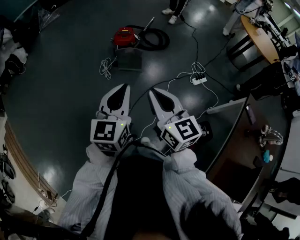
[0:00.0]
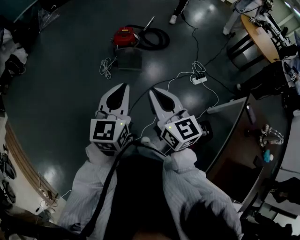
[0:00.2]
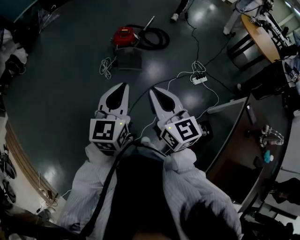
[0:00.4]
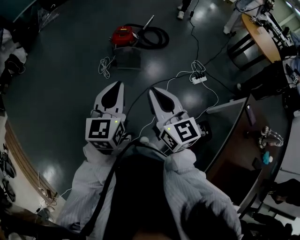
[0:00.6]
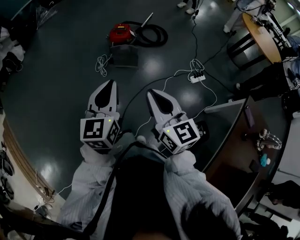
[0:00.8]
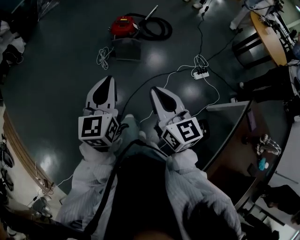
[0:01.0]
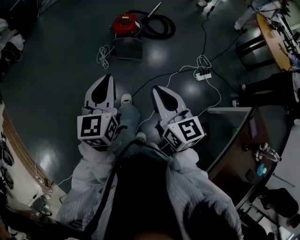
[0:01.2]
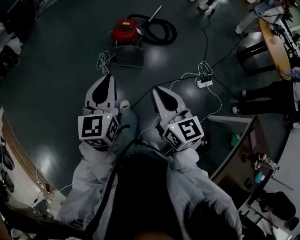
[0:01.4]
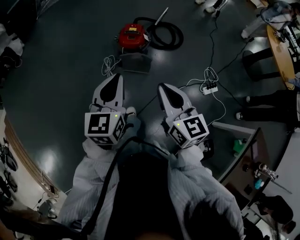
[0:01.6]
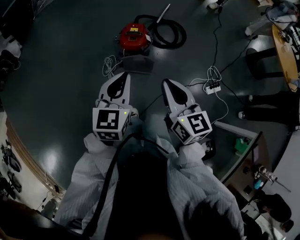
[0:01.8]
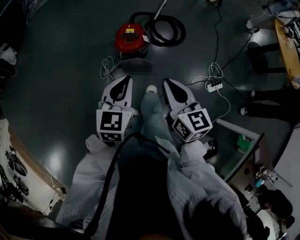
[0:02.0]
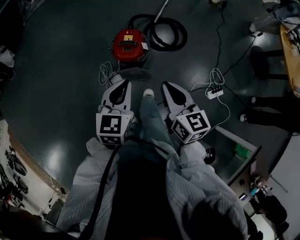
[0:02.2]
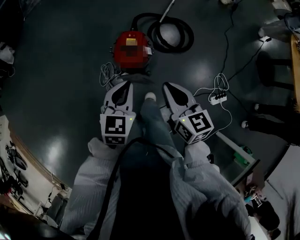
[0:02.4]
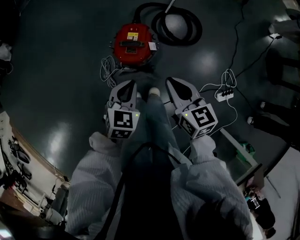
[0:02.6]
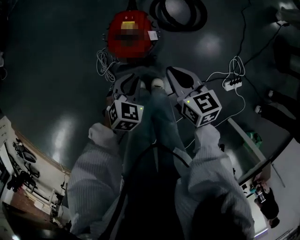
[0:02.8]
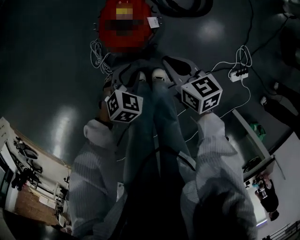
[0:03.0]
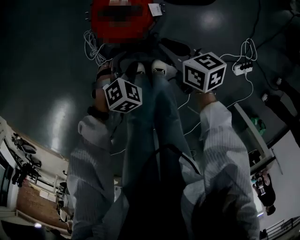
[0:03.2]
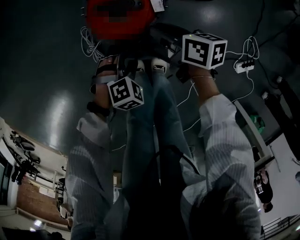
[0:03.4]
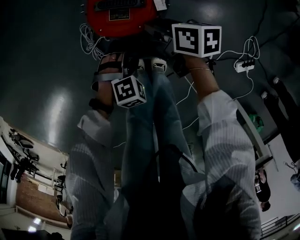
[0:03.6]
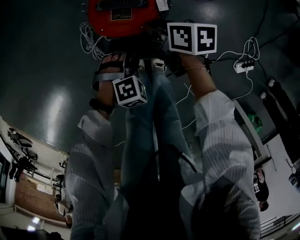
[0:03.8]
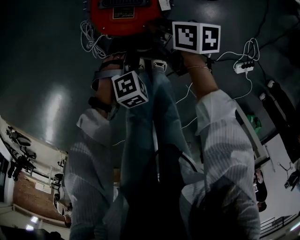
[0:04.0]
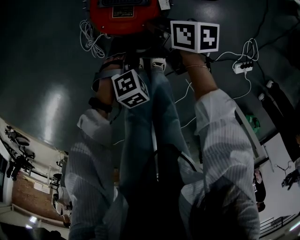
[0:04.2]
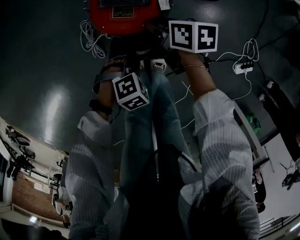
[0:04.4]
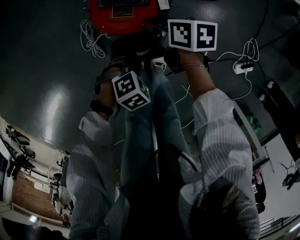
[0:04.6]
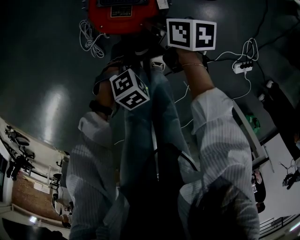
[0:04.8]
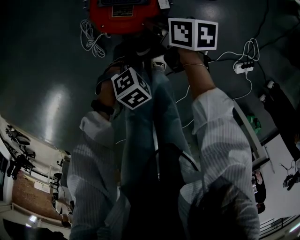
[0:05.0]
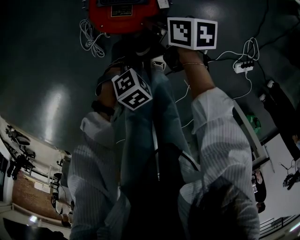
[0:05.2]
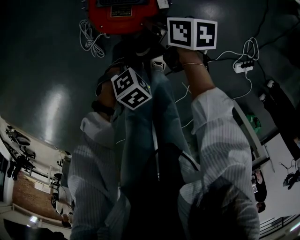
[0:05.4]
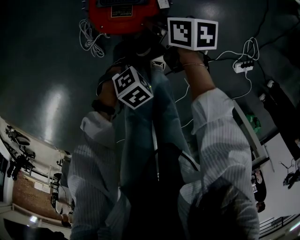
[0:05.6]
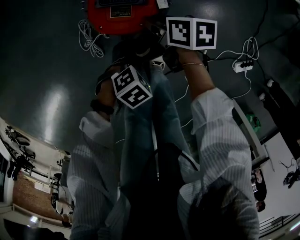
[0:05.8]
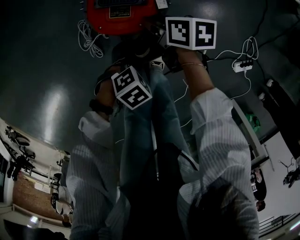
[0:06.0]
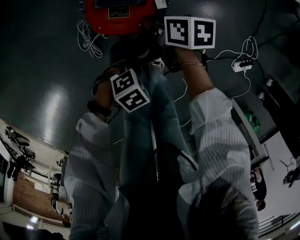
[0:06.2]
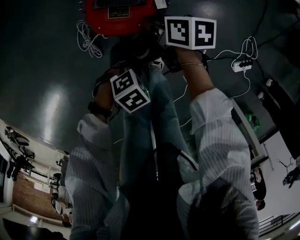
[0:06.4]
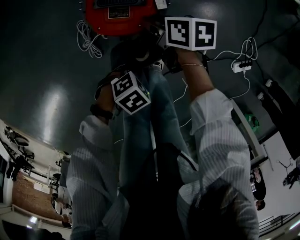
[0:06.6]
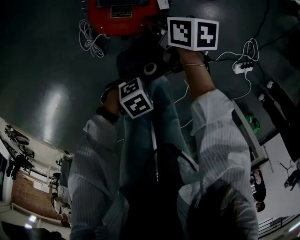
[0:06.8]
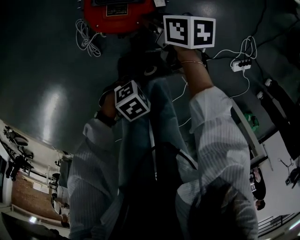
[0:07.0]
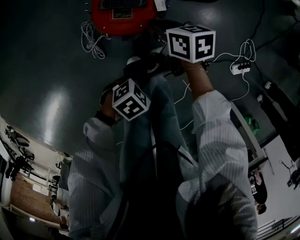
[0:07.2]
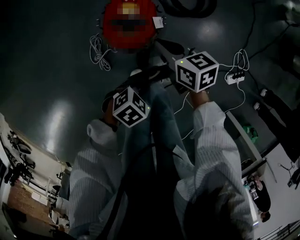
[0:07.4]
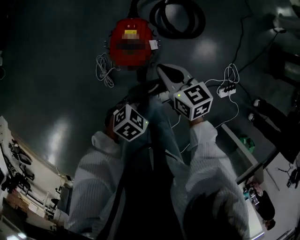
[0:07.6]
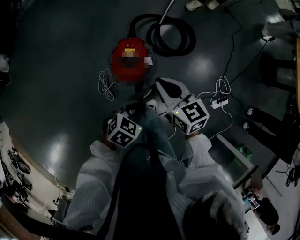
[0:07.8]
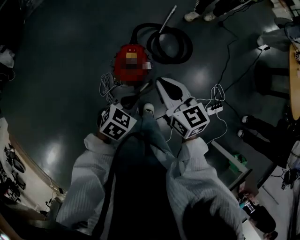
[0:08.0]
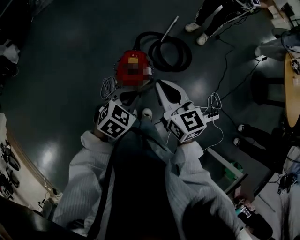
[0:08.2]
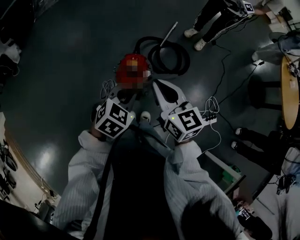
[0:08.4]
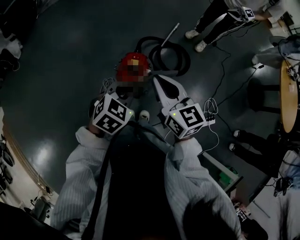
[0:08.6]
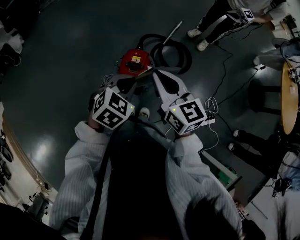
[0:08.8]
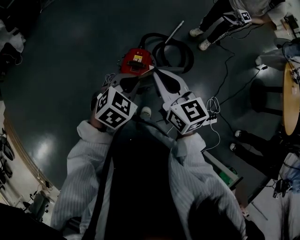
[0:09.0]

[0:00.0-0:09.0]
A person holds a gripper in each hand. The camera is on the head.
0:00.0 to 0:01.6: Both grippers move forward, some 30 cm.
0:01.6 to 0:03.0: Both grippers move downward and forward, roughly 60 cm. The left gripper tilts its fingers approximately 50 degrees downward, and opens its fingers, while the right gripper turns by some 30 degrees.
0:03.0 to 0:04.4: Both grippers travel together downward, roughly 15 cm. The left gripper changes its angle by some 30 degrees; the right gripper swivels some 30 degrees, and opens.
0:04.4 to 0:06.0: The grippers stay close to where they were, moving slightly.
0:06.0 to 0:07.6: The two grippers go approximately 25 cm upward. The right gripper rotates about 30 degrees, and closes its fingers.
0:07.6 to 0:09.0: Both grippers travel together upward, approximately 30 cm. The right gripper turns by approximately 20 degrees, while the left gripper turns by roughly 30 degrees.

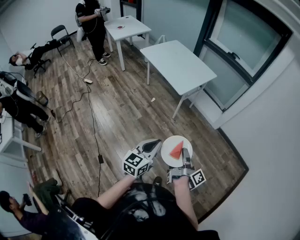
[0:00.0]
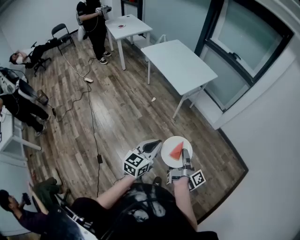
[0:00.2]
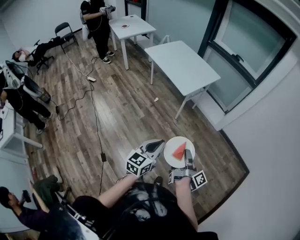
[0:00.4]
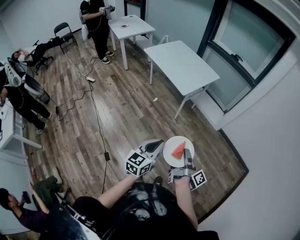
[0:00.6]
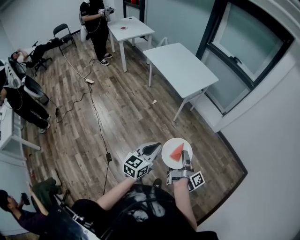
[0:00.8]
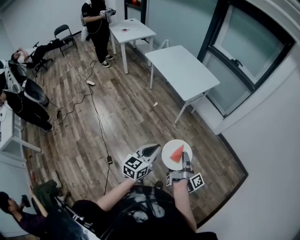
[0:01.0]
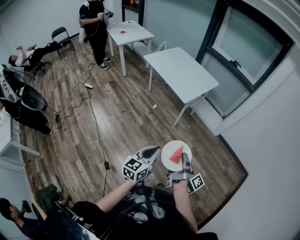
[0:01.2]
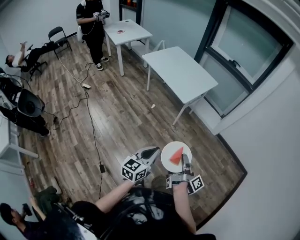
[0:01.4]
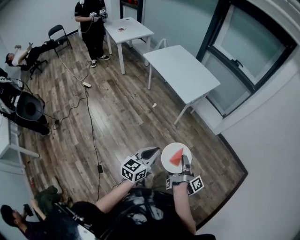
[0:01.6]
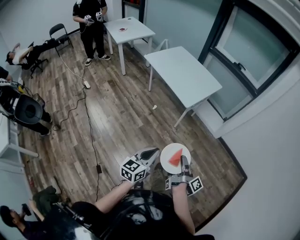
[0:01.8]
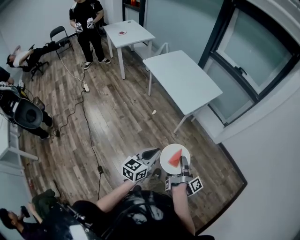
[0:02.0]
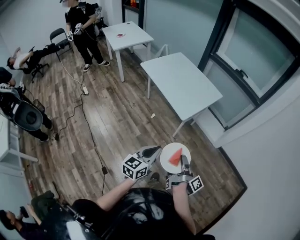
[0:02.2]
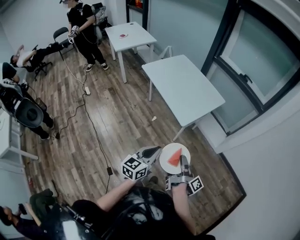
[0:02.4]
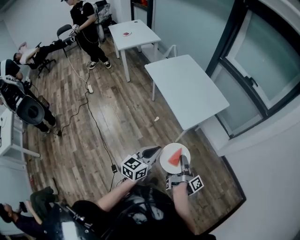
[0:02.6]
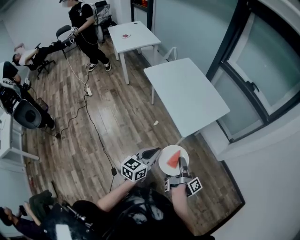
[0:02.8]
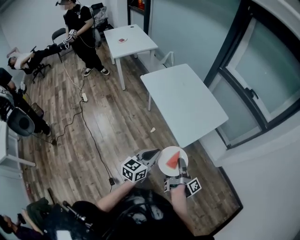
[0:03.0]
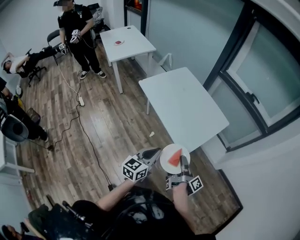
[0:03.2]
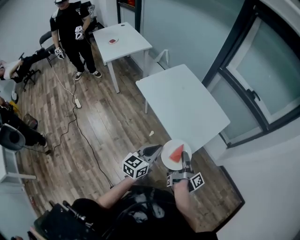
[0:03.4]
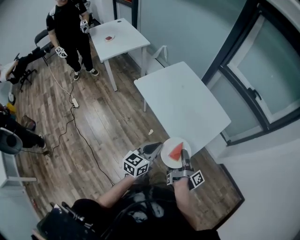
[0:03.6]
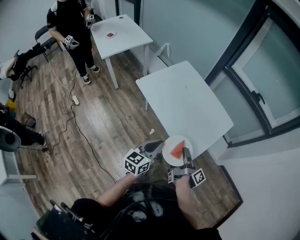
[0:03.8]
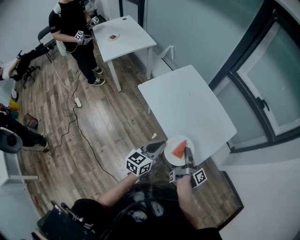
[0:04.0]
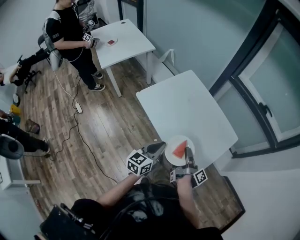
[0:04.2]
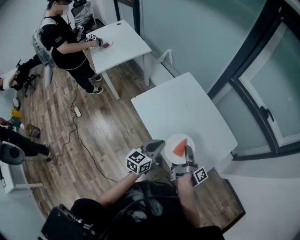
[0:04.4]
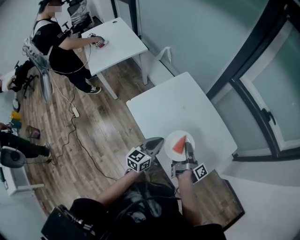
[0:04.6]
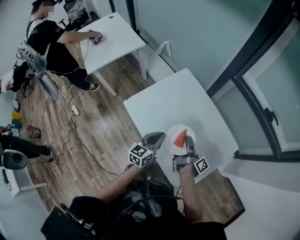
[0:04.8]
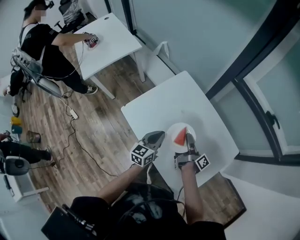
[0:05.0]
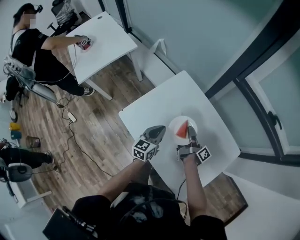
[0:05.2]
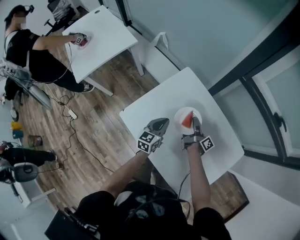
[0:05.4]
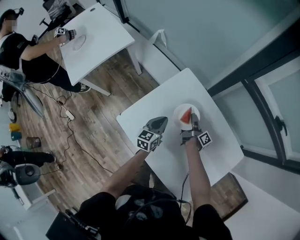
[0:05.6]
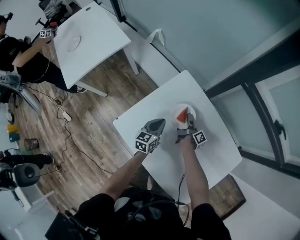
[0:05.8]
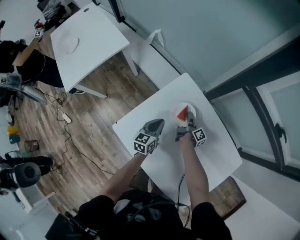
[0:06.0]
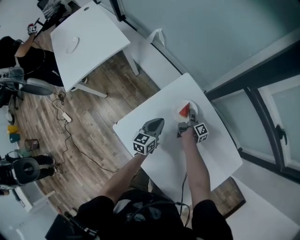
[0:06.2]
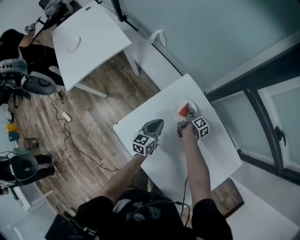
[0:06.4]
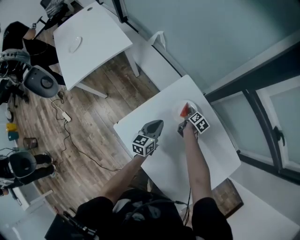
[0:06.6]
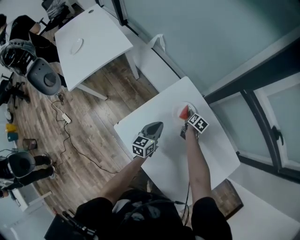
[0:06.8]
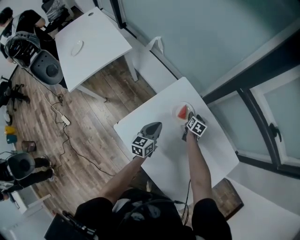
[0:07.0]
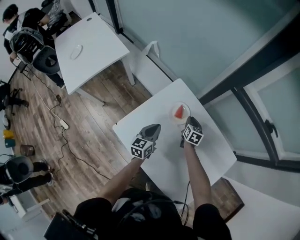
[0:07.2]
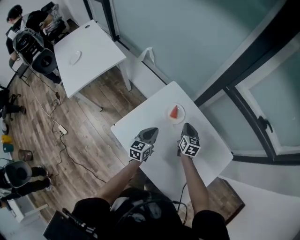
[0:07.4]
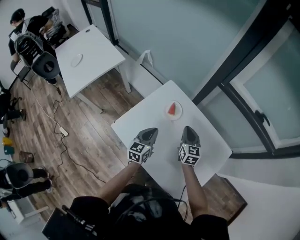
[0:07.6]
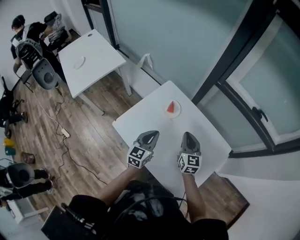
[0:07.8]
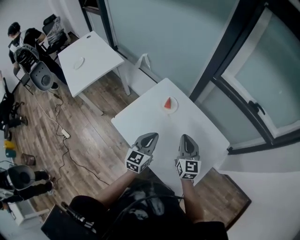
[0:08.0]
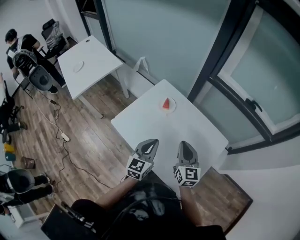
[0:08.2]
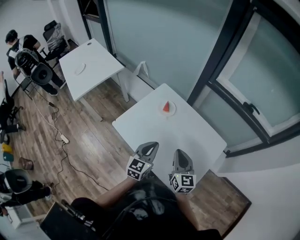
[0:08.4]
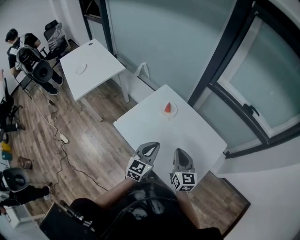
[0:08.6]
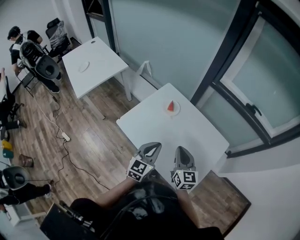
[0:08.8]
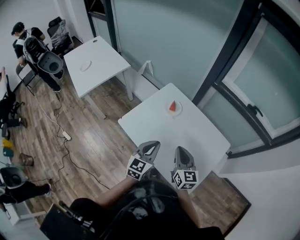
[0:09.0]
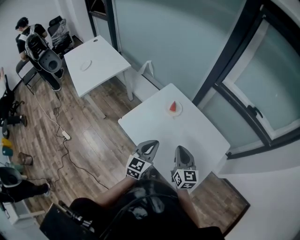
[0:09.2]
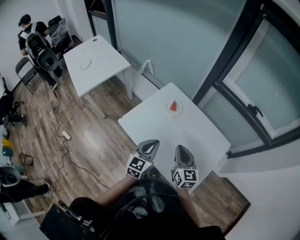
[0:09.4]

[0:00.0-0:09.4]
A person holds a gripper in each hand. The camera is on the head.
0:00.0 to 0:01.6: The left gripper ends up some 10 cm from where it was.
0:01.6 to 0:03.2: The left gripper moves some 50 cm.
0:03.2 to 0:04.8: The left gripper shifts by about 50 cm.
0:04.8 to 0:06.2: The left gripper moves about 30 cm.
0:06.2 to 0:07.8: The left gripper ends up about 25 cm from where it was.
0:07.8 to 0:09.4: The left gripper moves roughly 15 cm.

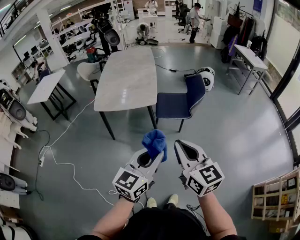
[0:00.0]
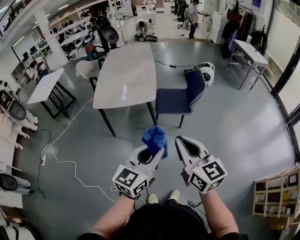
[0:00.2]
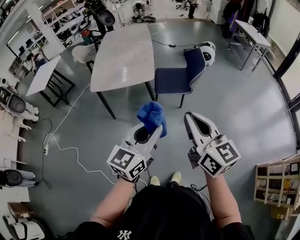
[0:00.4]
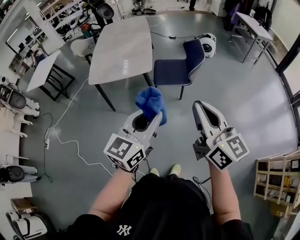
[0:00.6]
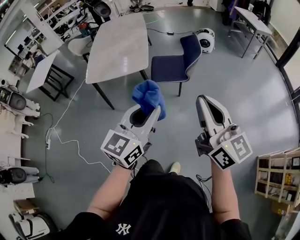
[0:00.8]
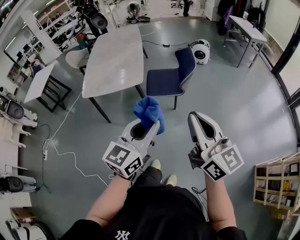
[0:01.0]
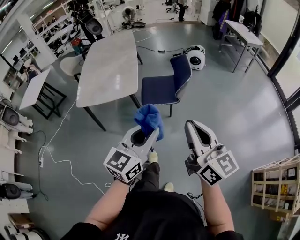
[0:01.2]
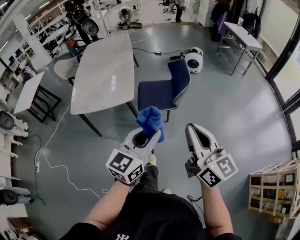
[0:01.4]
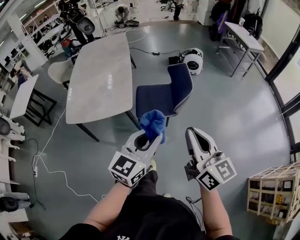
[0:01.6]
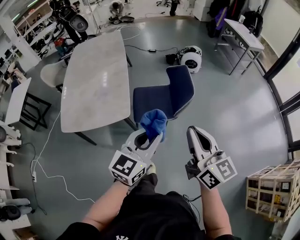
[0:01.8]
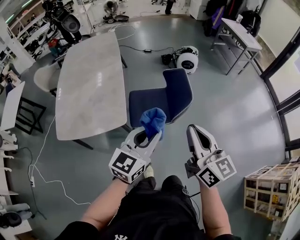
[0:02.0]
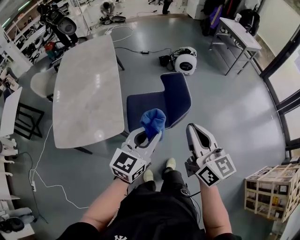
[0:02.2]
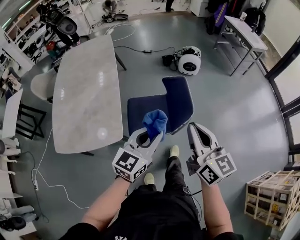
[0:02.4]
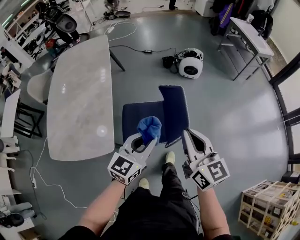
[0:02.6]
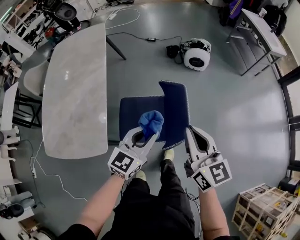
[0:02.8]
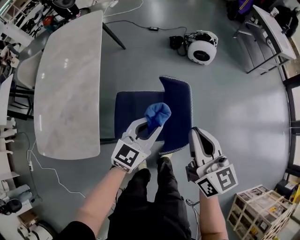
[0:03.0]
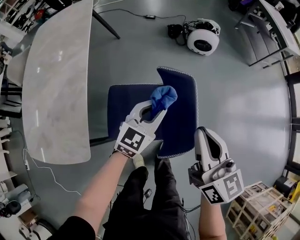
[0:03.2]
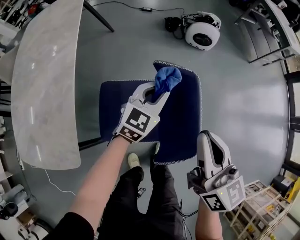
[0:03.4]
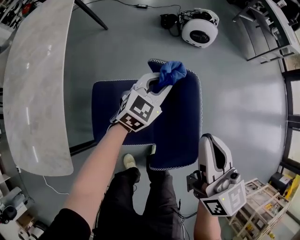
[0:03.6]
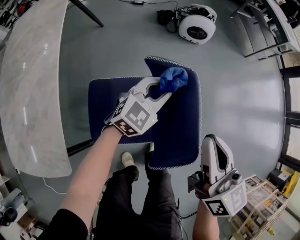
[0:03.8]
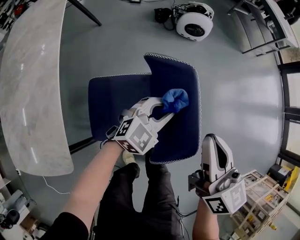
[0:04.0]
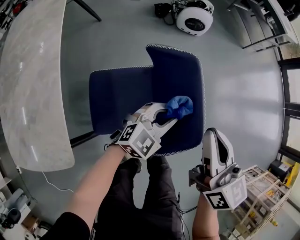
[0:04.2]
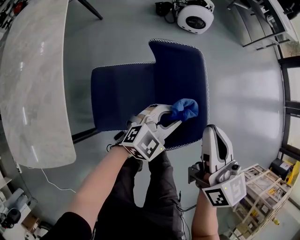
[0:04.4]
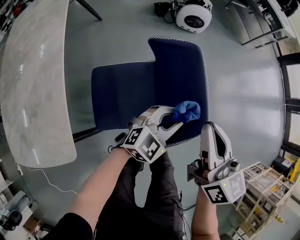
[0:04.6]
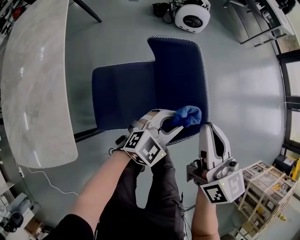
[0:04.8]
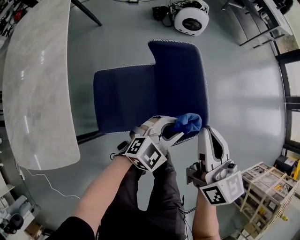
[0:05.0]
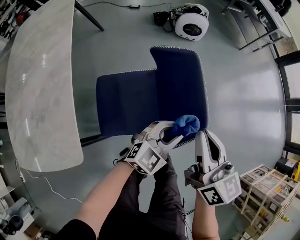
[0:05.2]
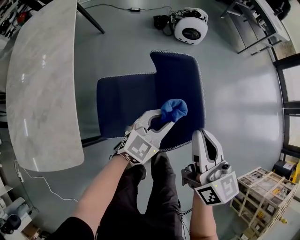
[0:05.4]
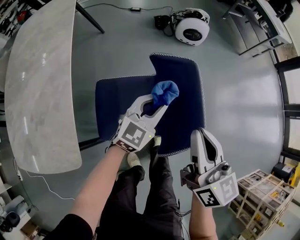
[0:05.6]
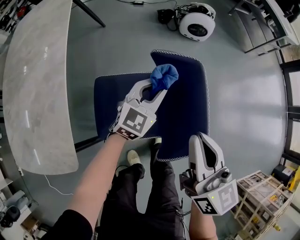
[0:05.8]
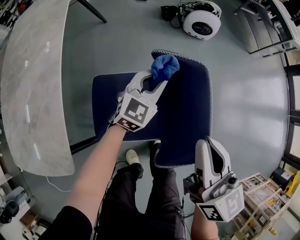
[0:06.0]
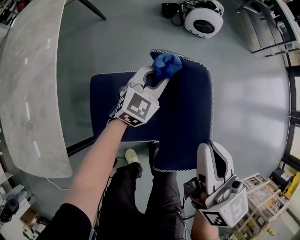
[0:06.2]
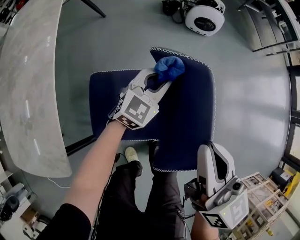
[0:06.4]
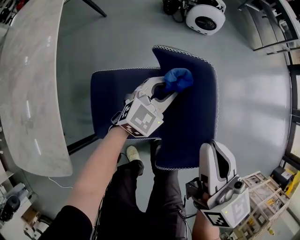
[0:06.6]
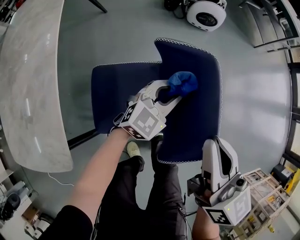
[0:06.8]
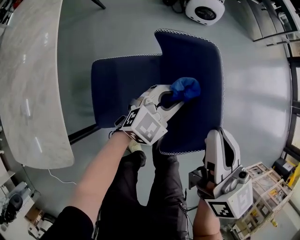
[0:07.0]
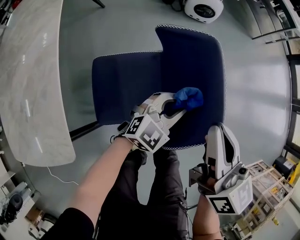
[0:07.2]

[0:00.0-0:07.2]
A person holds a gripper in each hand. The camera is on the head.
0:00.0 to 0:01.4: The left gripper travels forward and to the right by about 20 cm; the right gripper shifts approximately 20 cm to the right and forward.
0:01.4 to 0:02.8: The pair of grippers is taken forward, roughly 50 cm.
0:02.8 to 0:04.4: The right gripper heads downward, covering some 15 cm. The left gripper shifts roughly 25 cm downward, reaches approximately 25 cm forward, then returns, and rotates roughly 30 degrees.
0:04.4 to 0:05.8: The left gripper travels to the left and forward by roughly 15 cm, and turns by some 20 degrees.
0:05.8 to 0:07.2: The left gripper goes roughly 15 cm backward and to the right.
